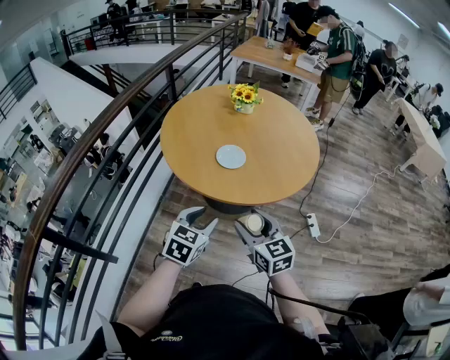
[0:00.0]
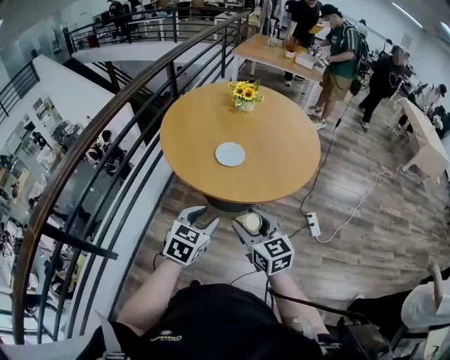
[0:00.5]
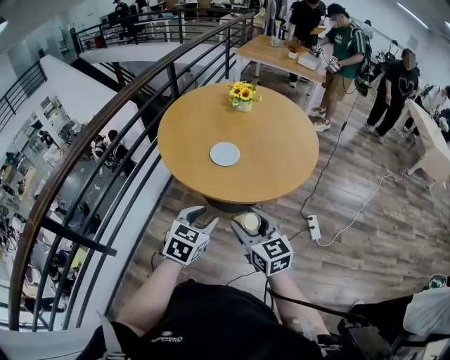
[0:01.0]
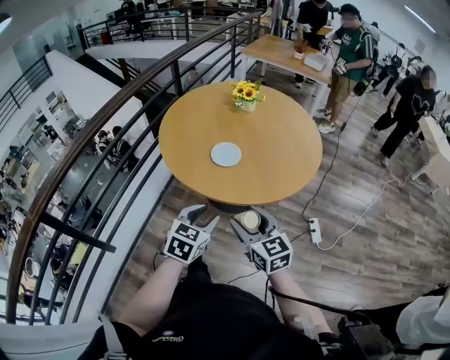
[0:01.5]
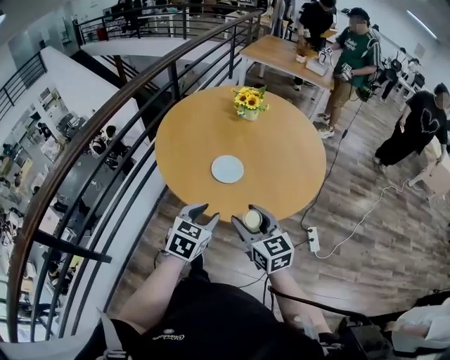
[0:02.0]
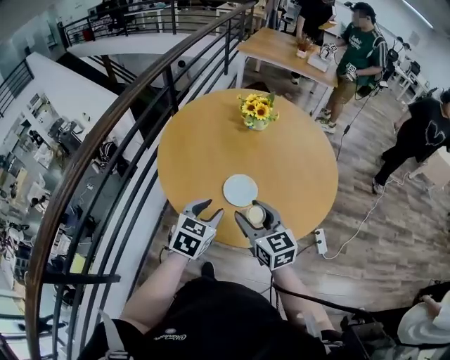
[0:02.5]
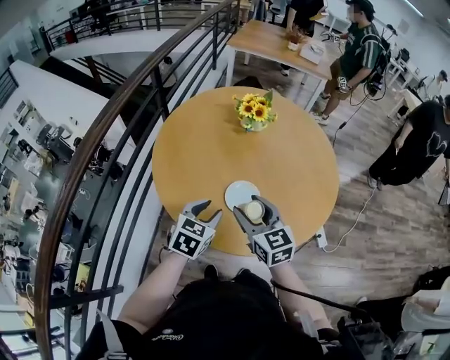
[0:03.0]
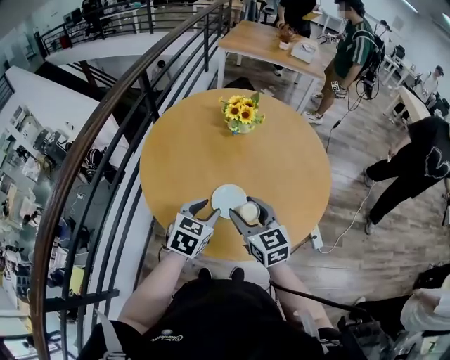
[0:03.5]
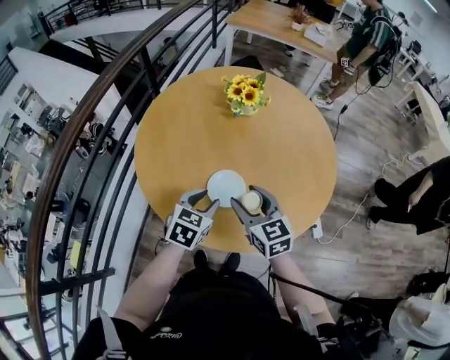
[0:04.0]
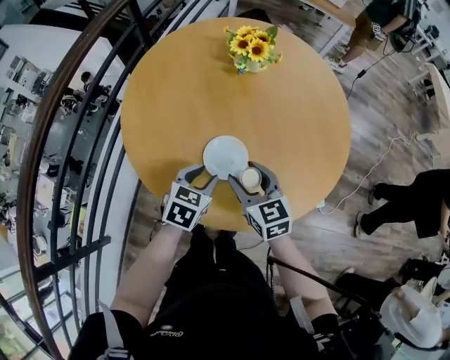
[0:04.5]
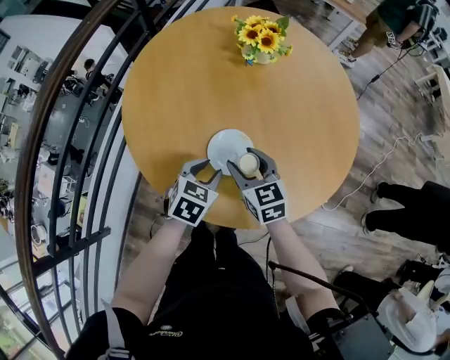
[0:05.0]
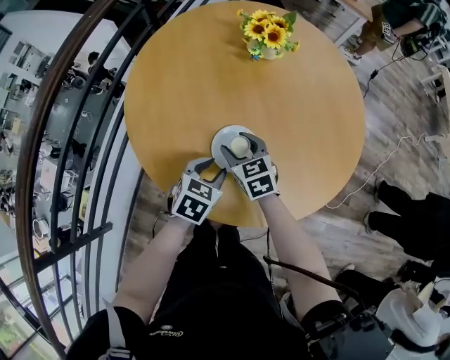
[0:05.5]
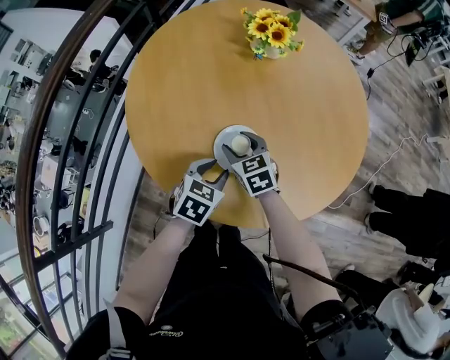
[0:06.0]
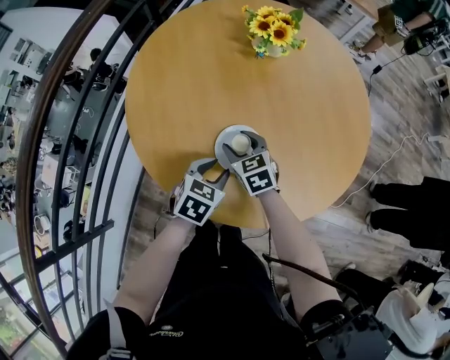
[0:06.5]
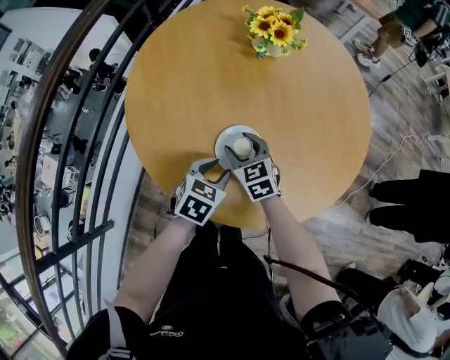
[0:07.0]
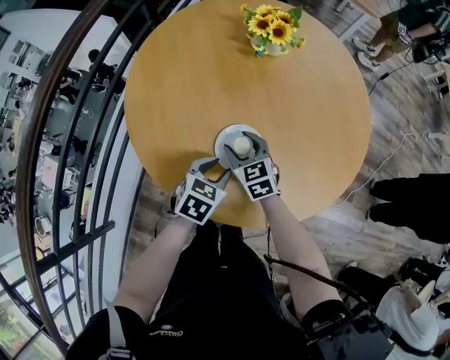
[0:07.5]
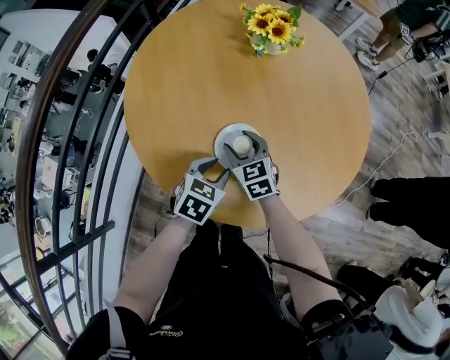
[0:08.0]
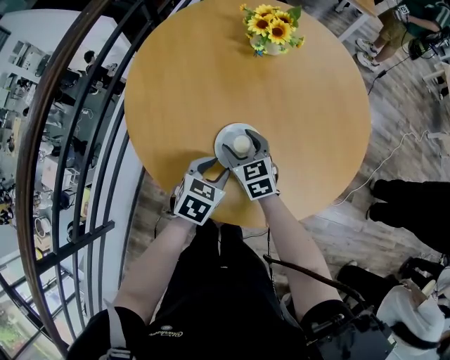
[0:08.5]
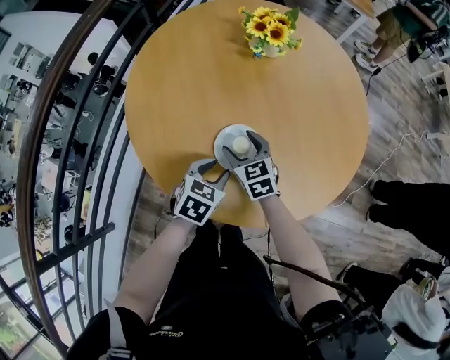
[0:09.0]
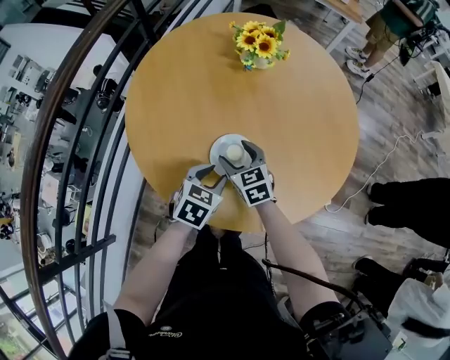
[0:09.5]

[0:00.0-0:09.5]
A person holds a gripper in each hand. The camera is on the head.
0:00.0 to 0:02.0: Both grippers travel together forward, some 10 cm.
0:02.0 to 0:04.0: Both grippers move forward, approximately 20 cm.
0:04.0 to 0:05.5: The left gripper moves downward, approximately 10 cm. Meanwhile the right gripper heads downward and forward, covering roughly 20 cm.
0:05.5 to 0:09.5: The grippers move only a little.

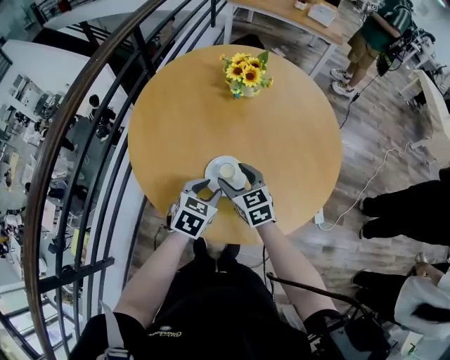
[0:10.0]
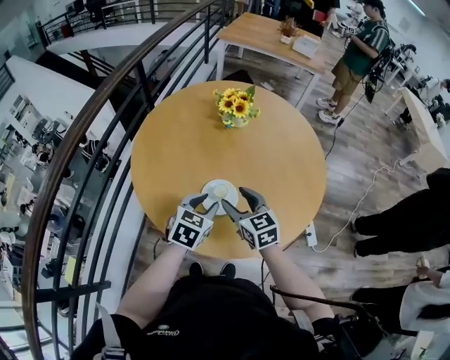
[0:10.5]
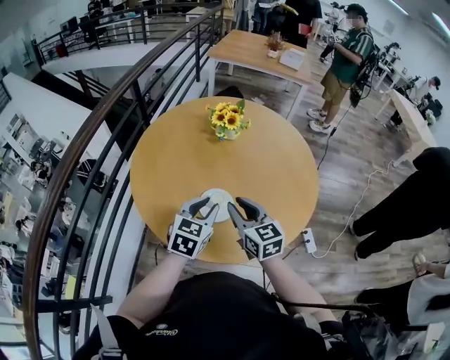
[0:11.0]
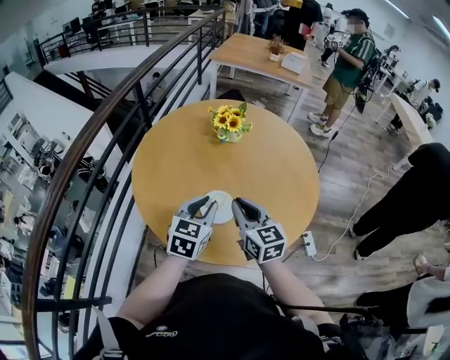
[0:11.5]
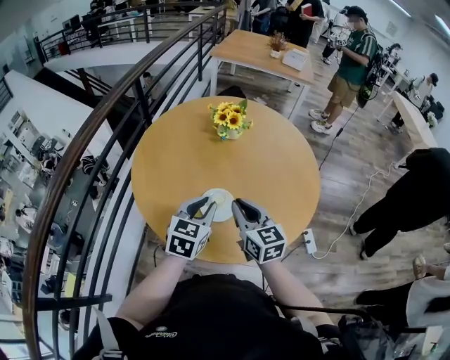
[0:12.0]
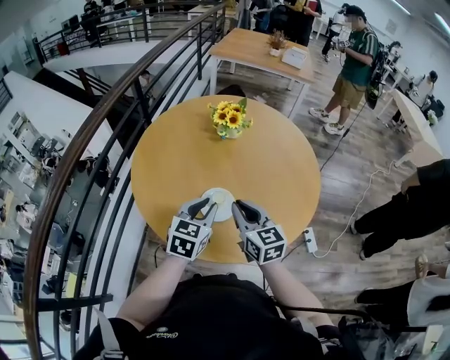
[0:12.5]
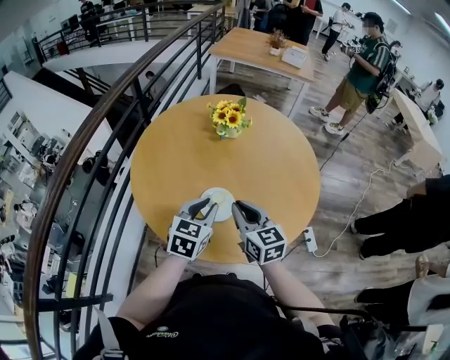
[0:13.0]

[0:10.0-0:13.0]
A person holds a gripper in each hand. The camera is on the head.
0:10.0 to 0:11.5: The left gripper shifts some 15 cm upward, and changes its angle by roughly 20 degrees. The right gripper is displaced upward and backward by about 15 cm, changes its angle by approximately 20 degrees, and closes its fingers.
0:11.5 to 0:13.0: The grippers stay close to where they were, moving slightly.

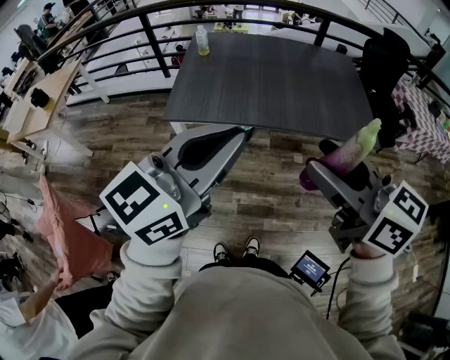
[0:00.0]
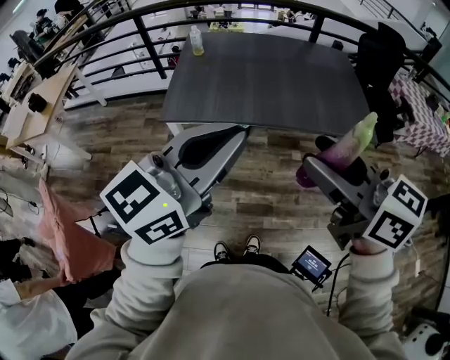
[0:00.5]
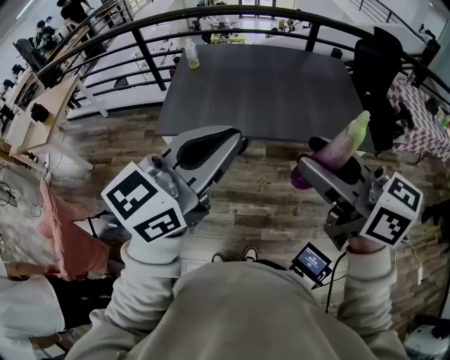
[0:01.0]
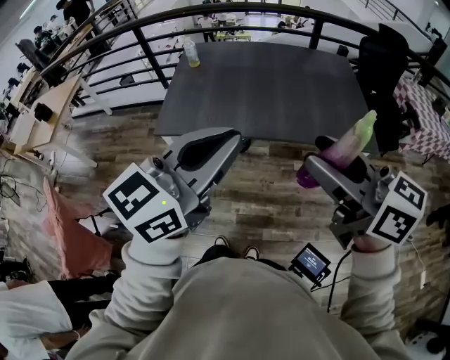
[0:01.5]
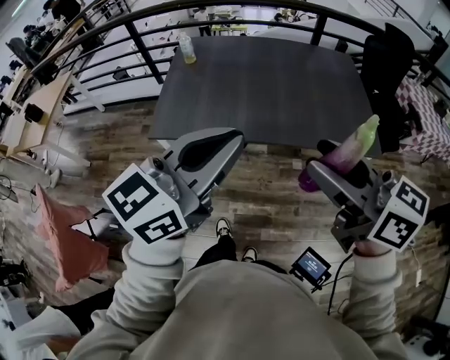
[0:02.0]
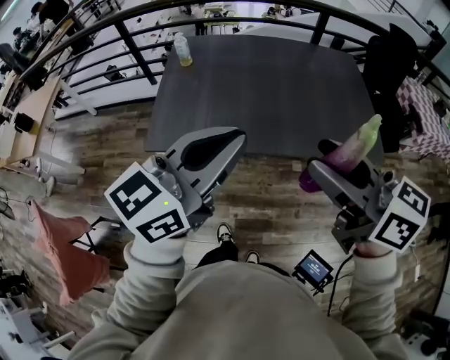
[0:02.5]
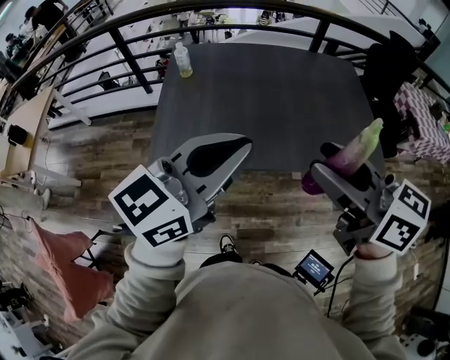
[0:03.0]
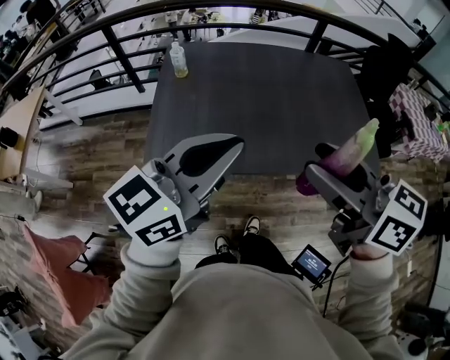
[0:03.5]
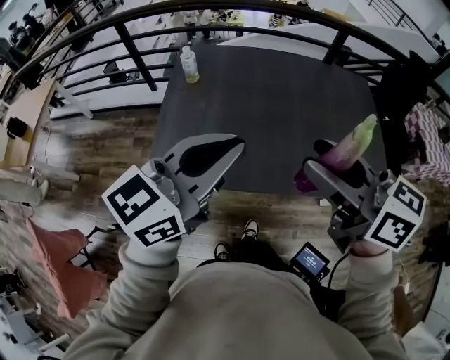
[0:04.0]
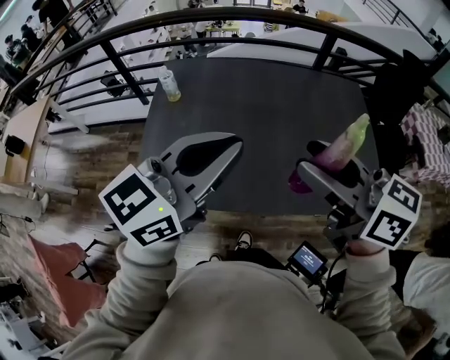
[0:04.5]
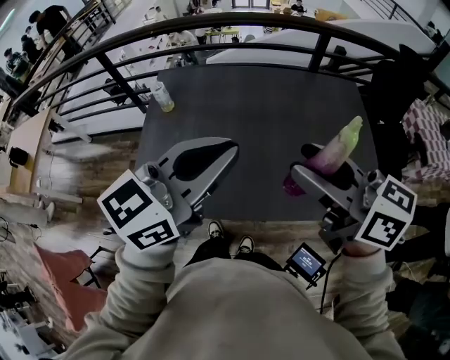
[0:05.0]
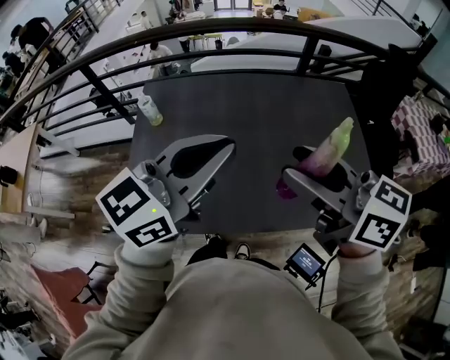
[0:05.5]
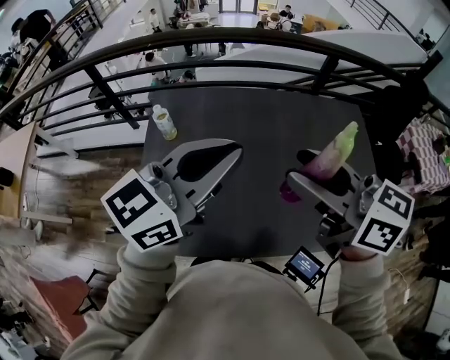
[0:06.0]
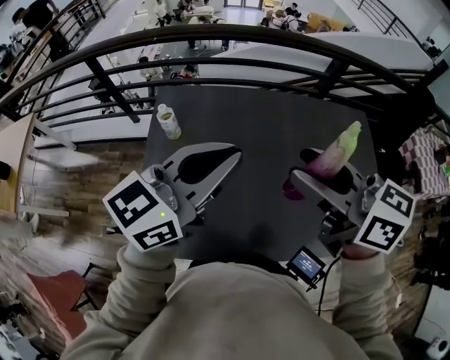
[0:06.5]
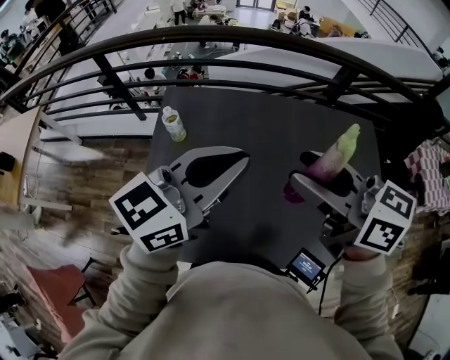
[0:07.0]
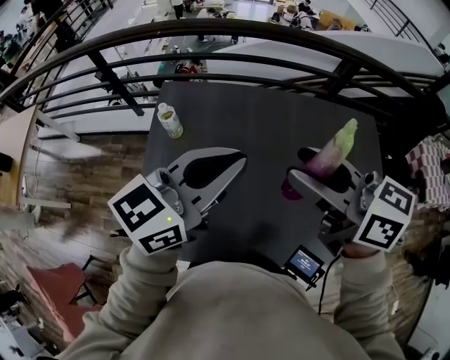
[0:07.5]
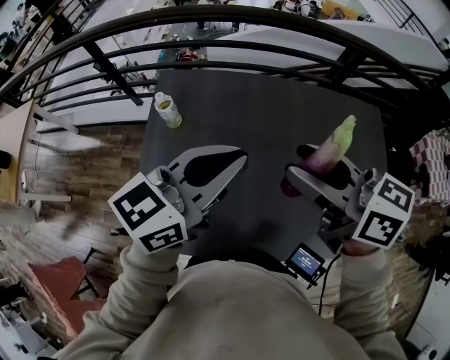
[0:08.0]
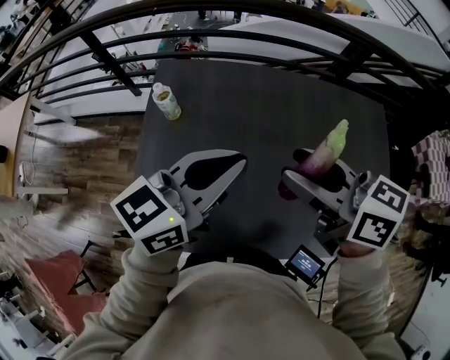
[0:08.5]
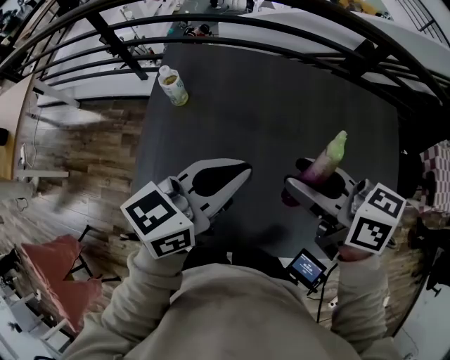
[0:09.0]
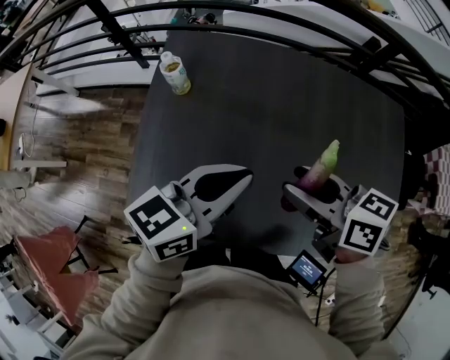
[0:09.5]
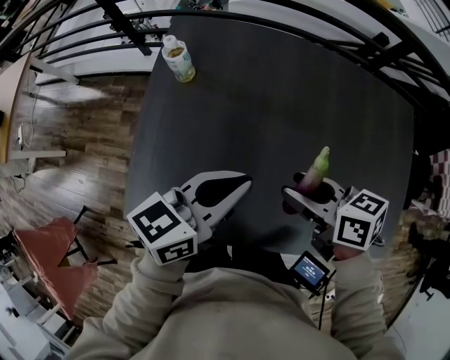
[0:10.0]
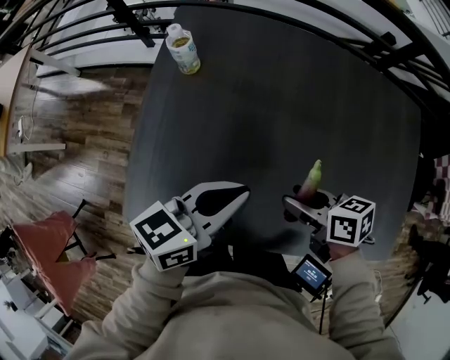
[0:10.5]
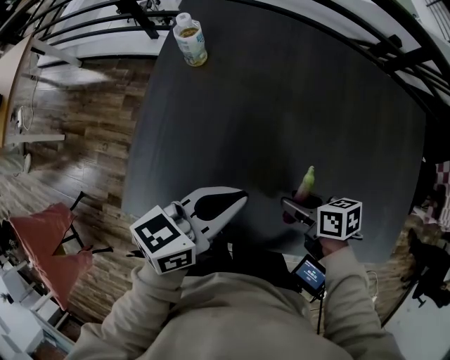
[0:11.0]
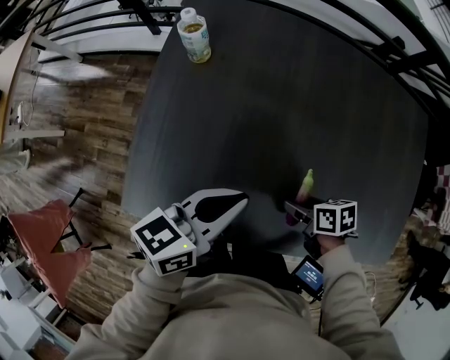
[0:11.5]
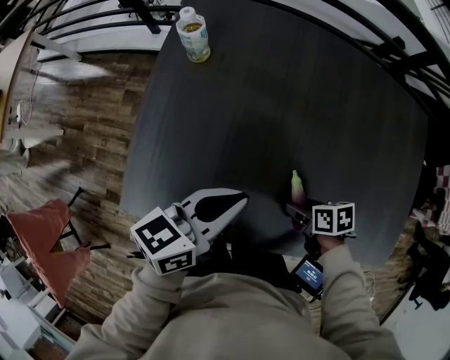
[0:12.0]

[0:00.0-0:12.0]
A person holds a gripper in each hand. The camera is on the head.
0:00.0 to 0:02.0: The two grippers go some 10 cm forward and to the right.
0:02.0 to 0:04.0: Both grippers move forward and to the left, some 25 cm.
0:04.0 to 0:06.0: Both grippers travel together forward, about 25 cm.
0:06.0 to 0:08.0: The right gripper travels forward and downward by approximately 10 cm; the left gripper heads downward and forward, covering approximately 10 cm.
0:08.0 to 0:10.0: Both grippers travel together downward, about 20 cm. The left gripper swivels roughly 20 degrees; the right gripper turns by some 30 degrees.
0:10.0 to 0:12.0: The right gripper travels downward by some 20 cm, and changes its angle by approximately 30 degrees. Meanwhile the left gripper heads downward, covering roughly 5 cm.

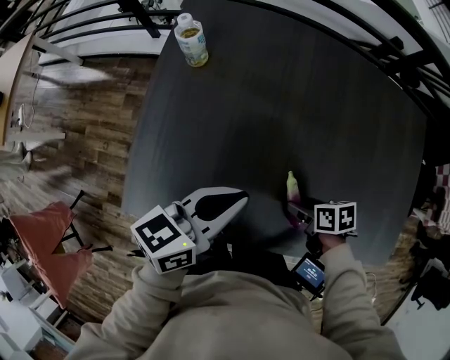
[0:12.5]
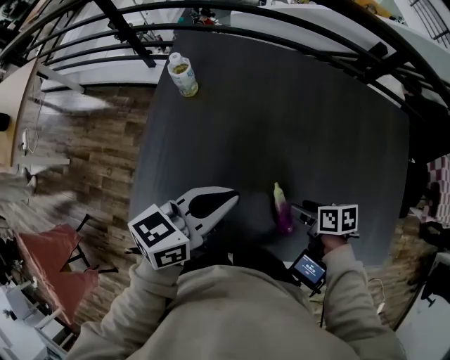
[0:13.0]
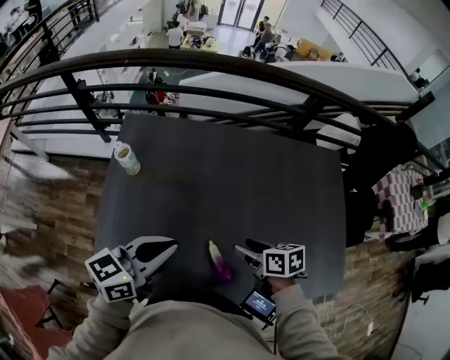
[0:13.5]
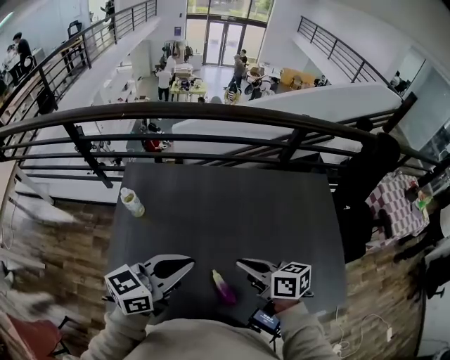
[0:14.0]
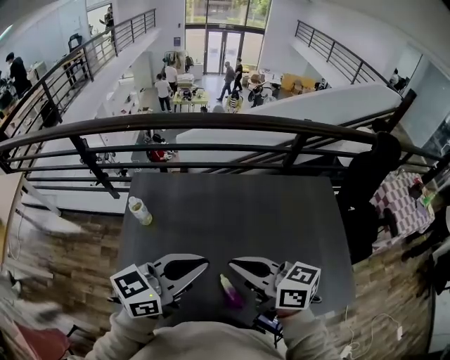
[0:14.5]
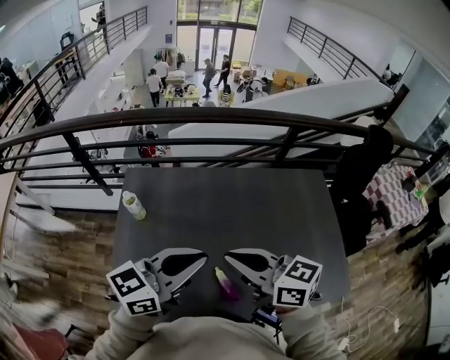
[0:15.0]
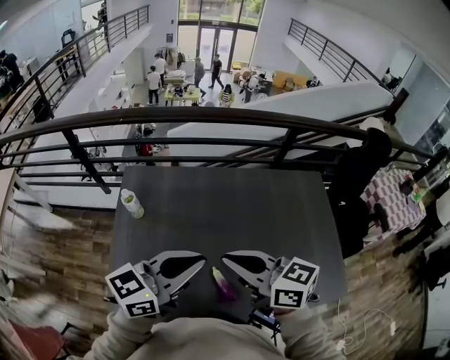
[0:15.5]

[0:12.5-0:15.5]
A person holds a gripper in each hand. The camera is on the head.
0:12.5 to 0:14.0: The left gripper travels upward by roughly 20 cm, and rotates some 20 degrees; the right gripper moves upward, about 30 cm, angles its fingers upward, by roughly 40 degrees, and closes its fingers.
0:14.0 to 0:15.5: The right gripper moves upward and to the left, some 15 cm, and turns by some 20 degrees, while the left gripper goes approximately 5 cm upward.
